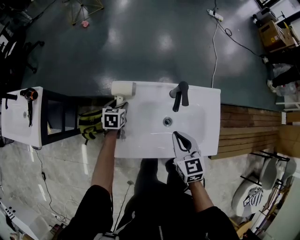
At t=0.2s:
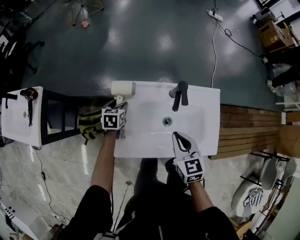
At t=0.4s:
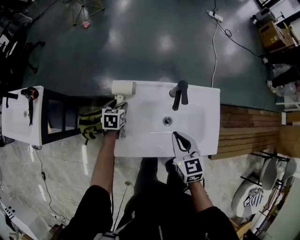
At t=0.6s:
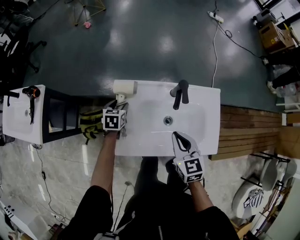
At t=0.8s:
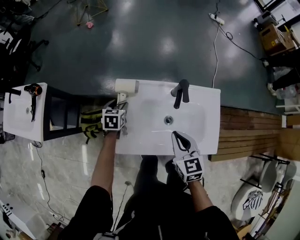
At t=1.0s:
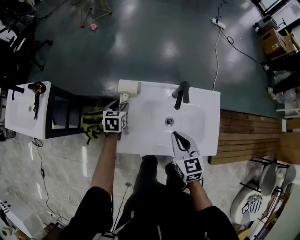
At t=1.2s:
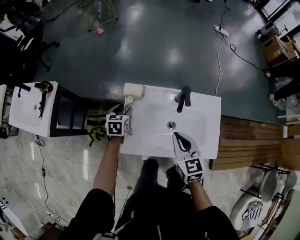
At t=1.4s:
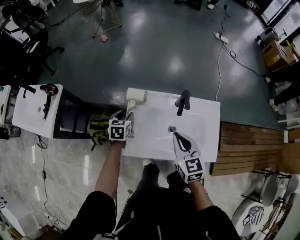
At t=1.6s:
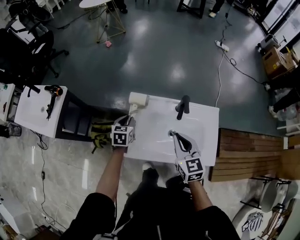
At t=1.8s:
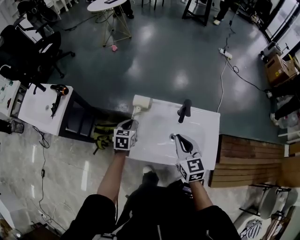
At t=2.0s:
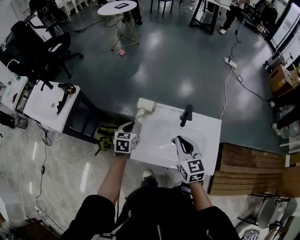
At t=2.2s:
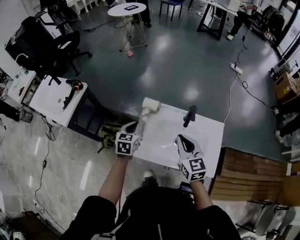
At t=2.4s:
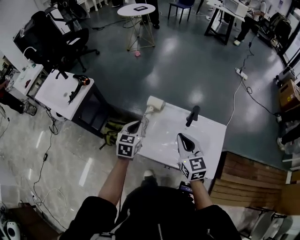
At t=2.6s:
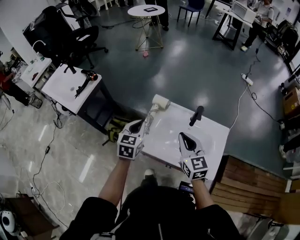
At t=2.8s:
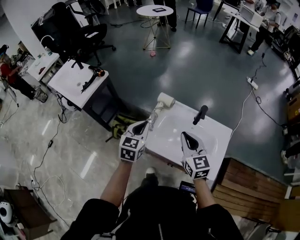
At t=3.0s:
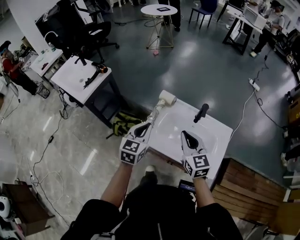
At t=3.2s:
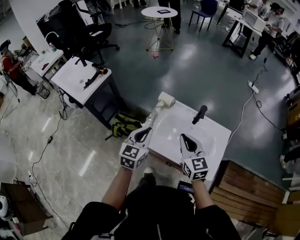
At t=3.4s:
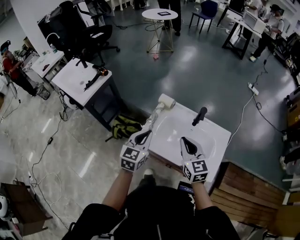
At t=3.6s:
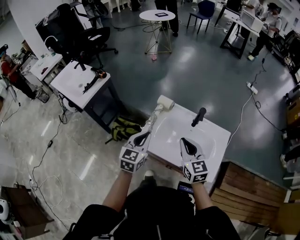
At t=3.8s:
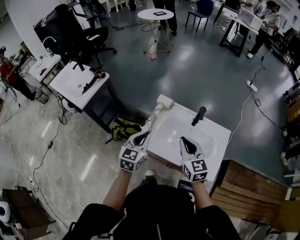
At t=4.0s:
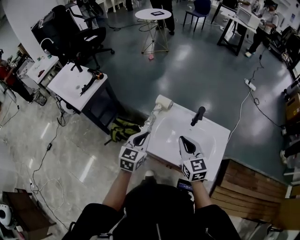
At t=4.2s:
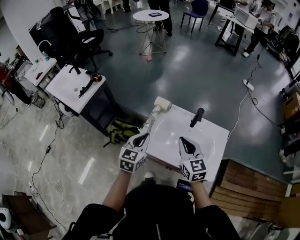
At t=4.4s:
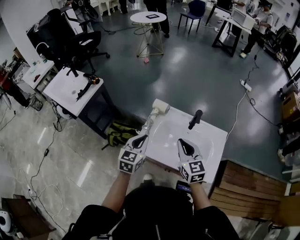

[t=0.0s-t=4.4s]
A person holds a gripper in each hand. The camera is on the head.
t=0.0s to t=1.4s: The left gripper heads upward and backward, covering about 10 cm. The right gripper goes approximately 5 cm upward.
t=1.4s to t=3.0s: The left gripper goes roughly 25 cm upward and backward, swivels roughly 30 degrees, and closes its fingers; the right gripper goes approximately 10 cm upward, and rotates some 20 degrees.
t=3.0s to t=4.4s: The grippers stay close to where they were, moving slightly.

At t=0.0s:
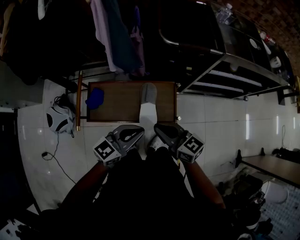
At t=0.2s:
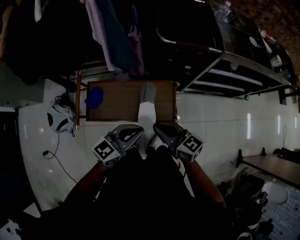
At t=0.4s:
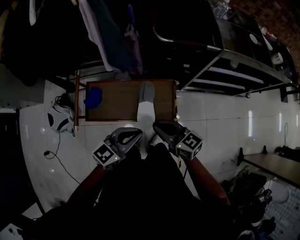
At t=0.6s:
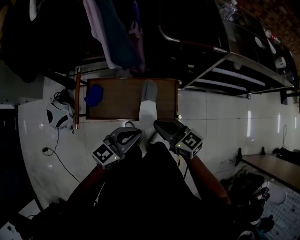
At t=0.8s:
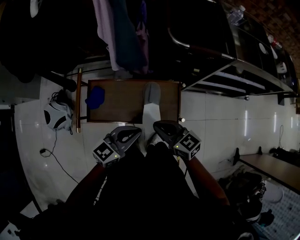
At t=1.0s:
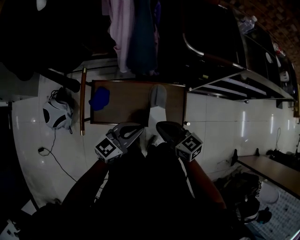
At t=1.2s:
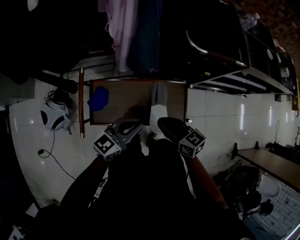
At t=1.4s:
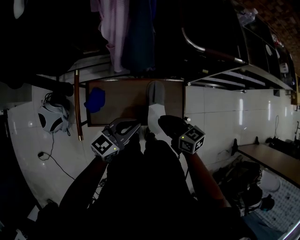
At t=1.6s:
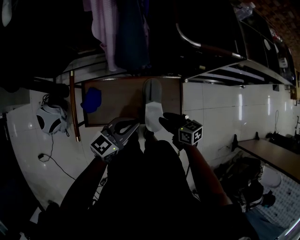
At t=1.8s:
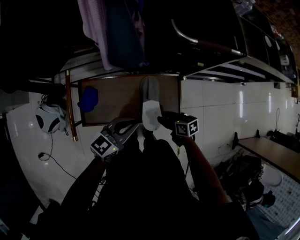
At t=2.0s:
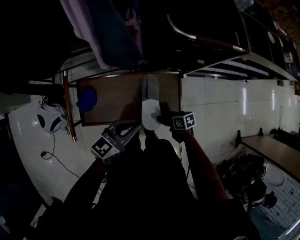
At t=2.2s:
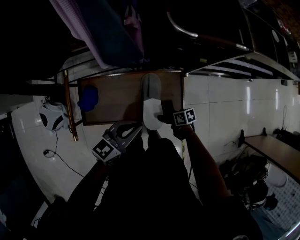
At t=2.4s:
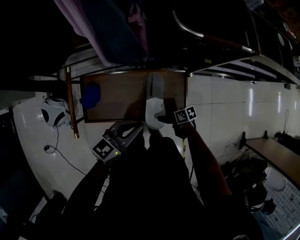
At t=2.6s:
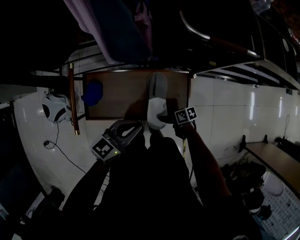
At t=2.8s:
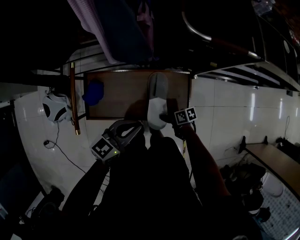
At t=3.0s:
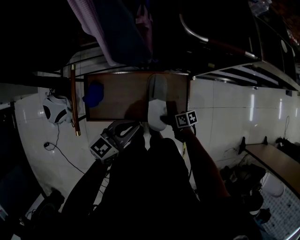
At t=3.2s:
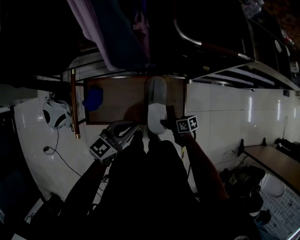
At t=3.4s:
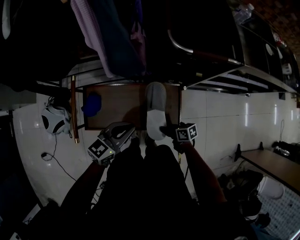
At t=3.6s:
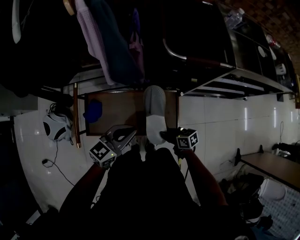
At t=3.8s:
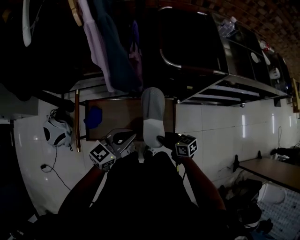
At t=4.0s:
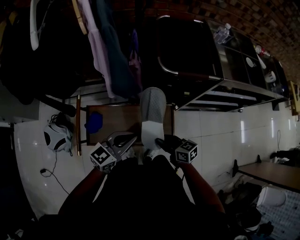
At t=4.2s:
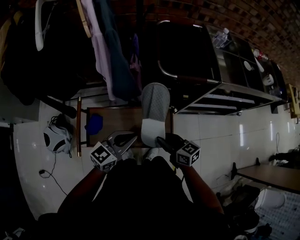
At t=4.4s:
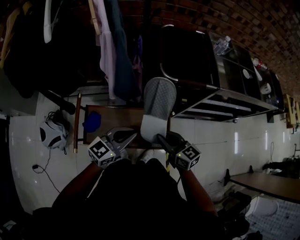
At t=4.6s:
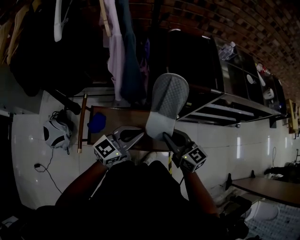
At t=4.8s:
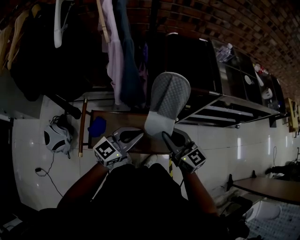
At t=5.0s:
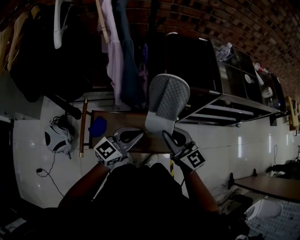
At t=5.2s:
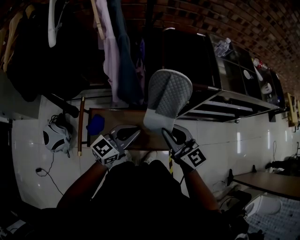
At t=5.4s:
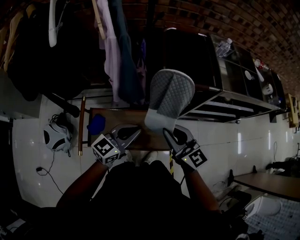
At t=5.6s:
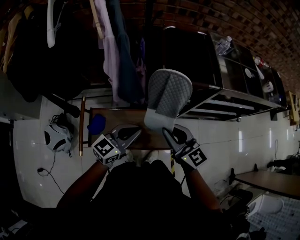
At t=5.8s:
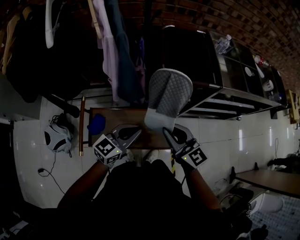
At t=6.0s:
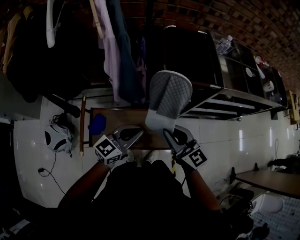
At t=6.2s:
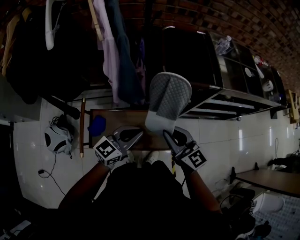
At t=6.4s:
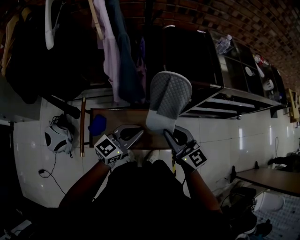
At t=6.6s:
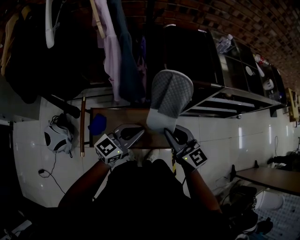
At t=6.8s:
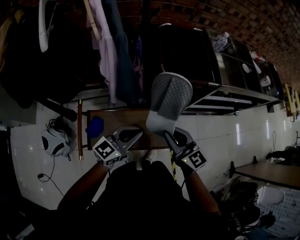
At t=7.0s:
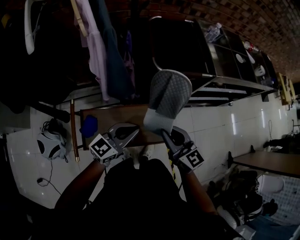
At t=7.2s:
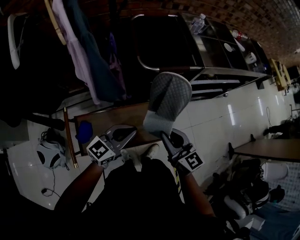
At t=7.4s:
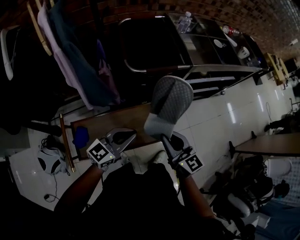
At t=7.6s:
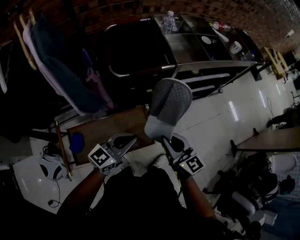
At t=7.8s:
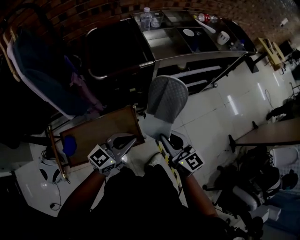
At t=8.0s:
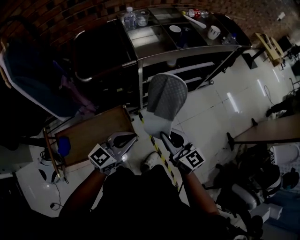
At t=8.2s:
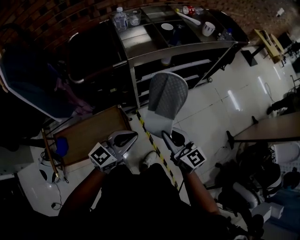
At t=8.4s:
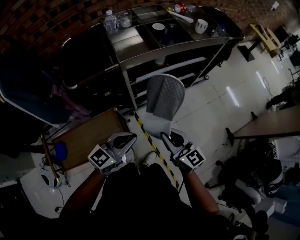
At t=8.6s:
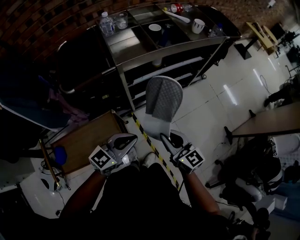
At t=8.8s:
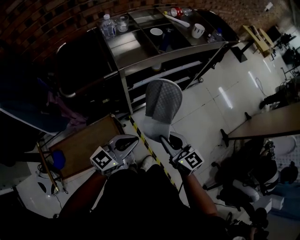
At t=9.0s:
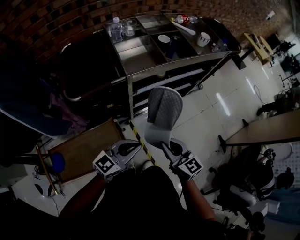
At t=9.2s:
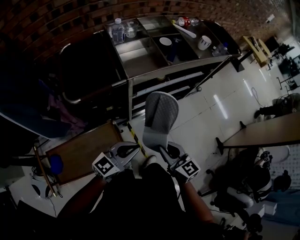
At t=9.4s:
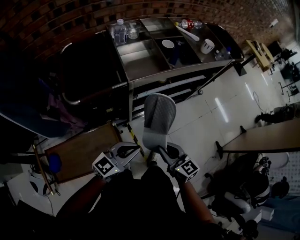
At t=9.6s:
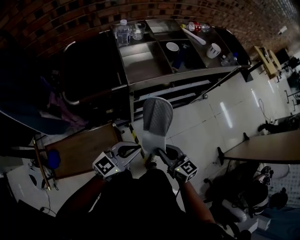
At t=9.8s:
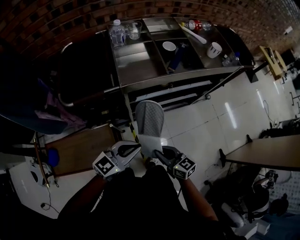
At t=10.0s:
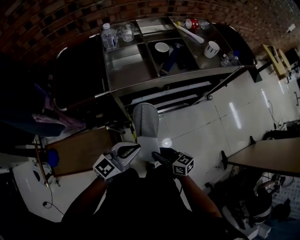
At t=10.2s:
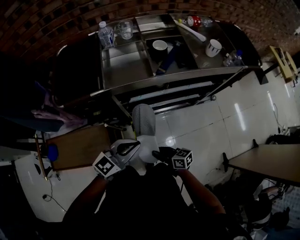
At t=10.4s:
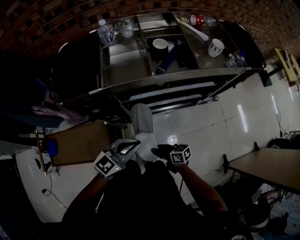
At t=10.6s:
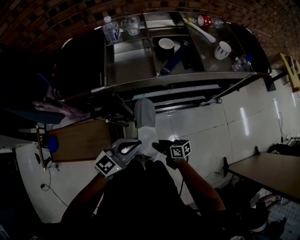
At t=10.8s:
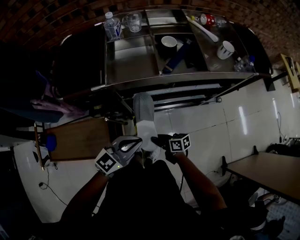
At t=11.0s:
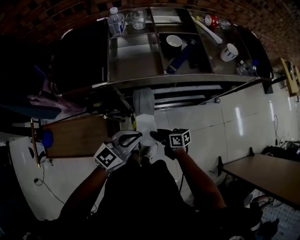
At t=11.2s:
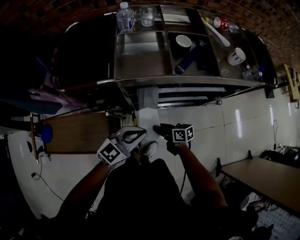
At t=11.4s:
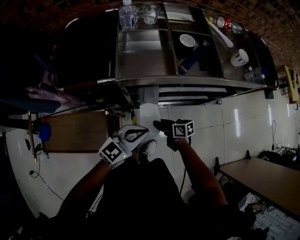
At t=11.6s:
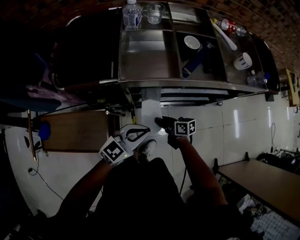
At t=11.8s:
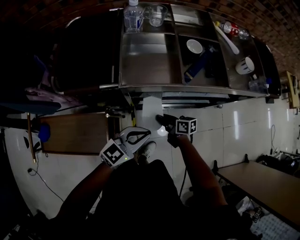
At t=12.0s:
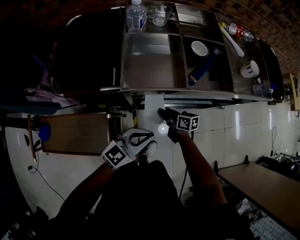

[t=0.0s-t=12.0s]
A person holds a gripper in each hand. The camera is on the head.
t=0.0s to t=1.6s: The right gripper moves downward and forward, approximately 20 cm, turns by about 30 degrees, and opens. Meanwhile the left gripper travels forward, to the left and downward by roughly 15 cm.
t=1.6s to t=3.0s: The right gripper heads downward, covering approximately 15 cm, swivels approximately 30 degrees, and opens, then closes again.
t=3.0s to t=4.4s: The left gripper heads upward, covering about 10 cm. The right gripper is displaced upward by some 35 cm, and turns by roughly 60 degrees.
t=4.4s to t=6.0s: The right gripper shifts about 10 cm upward.
t=6.0s to t=7.6s: The two grippers go approximately 15 cm to the right. The right gripper rotates about 20 degrees.
t=7.6s to t=9.0s: The grippers both shift to the right and forward by about 20 cm.
t=9.0s to t=10.4s: The right gripper travels downward by about 20 cm, and swivels roughly 50 degrees. Meanwhile the left gripper moves approximately 20 cm.
t=10.4s to t=12.0s: The left gripper moves about 10 cm. Meanwhile the right gripper shifts by approximately 25 cm.

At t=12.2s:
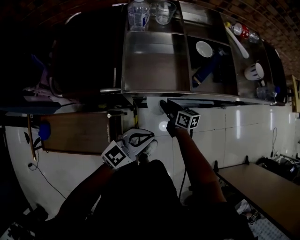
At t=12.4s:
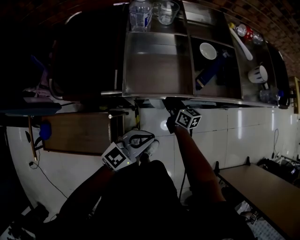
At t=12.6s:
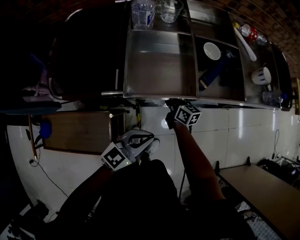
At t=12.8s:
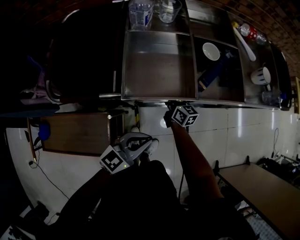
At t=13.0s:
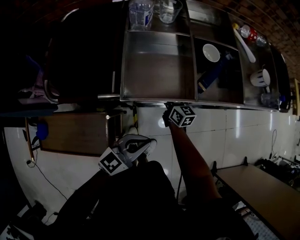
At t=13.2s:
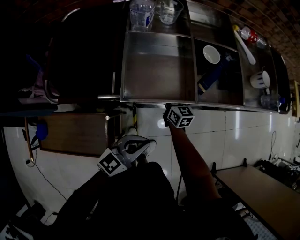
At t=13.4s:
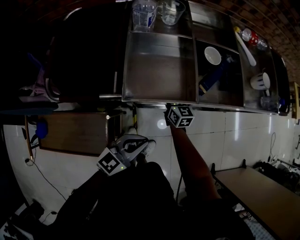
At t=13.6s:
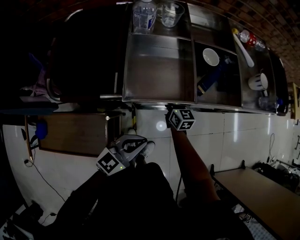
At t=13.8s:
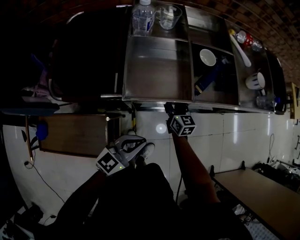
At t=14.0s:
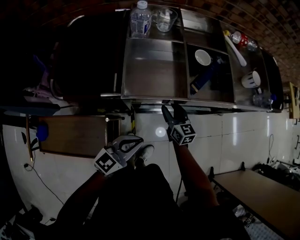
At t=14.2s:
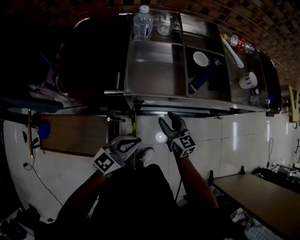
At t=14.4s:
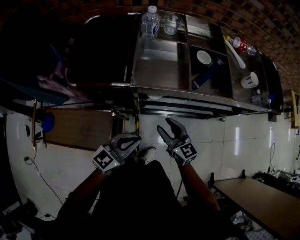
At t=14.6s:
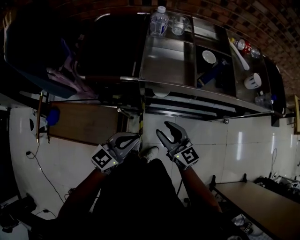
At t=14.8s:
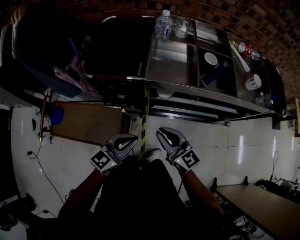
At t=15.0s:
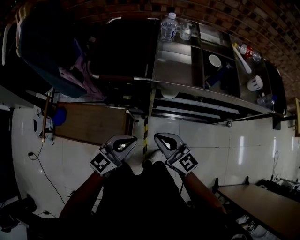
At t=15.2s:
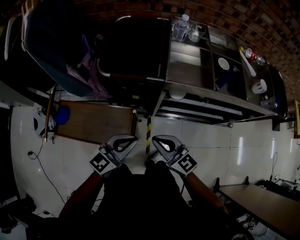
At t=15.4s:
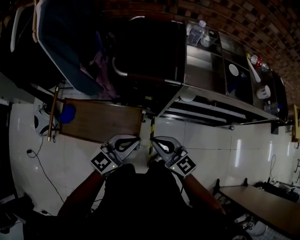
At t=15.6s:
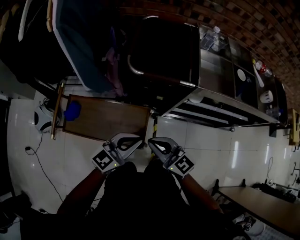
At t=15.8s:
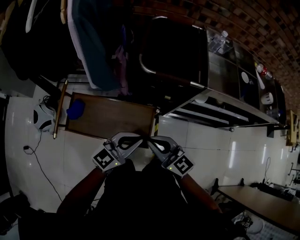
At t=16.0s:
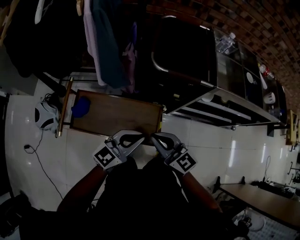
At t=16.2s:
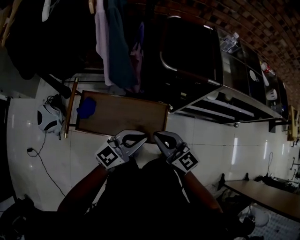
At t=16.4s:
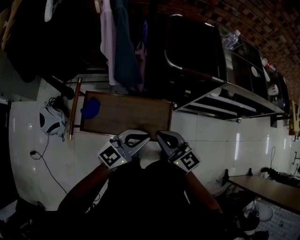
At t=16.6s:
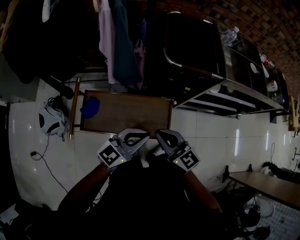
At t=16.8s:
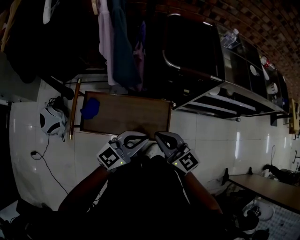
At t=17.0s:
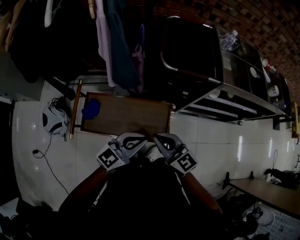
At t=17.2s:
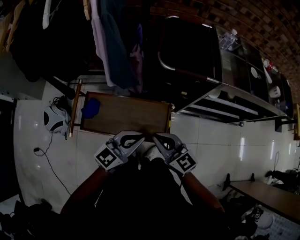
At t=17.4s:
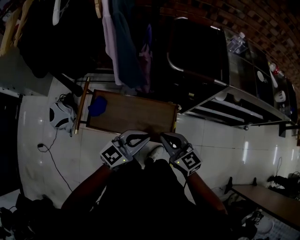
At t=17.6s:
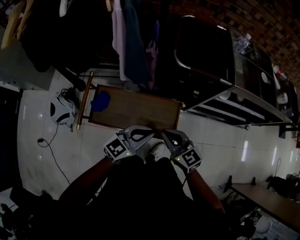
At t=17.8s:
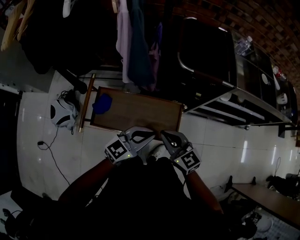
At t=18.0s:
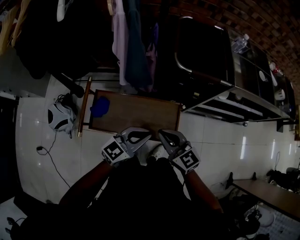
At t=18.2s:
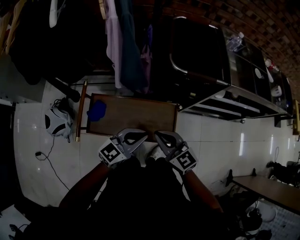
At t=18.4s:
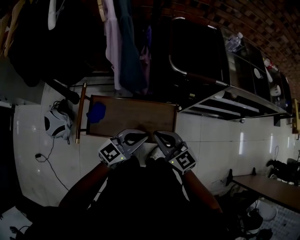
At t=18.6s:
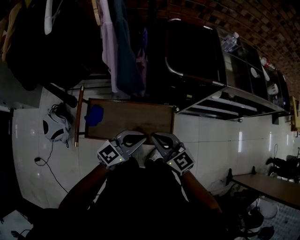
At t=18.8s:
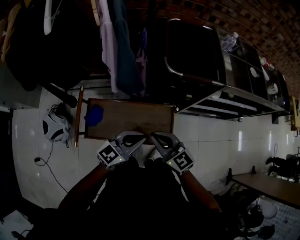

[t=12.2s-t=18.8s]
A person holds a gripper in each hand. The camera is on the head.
t=12.2s to t=13.8s: The right gripper travels forward by roughly 5 cm, rotates about 30 degrees, and opens its fingers.
t=13.8s to t=15.4s: The right gripper is displaced backward, to the left and upward by about 40 cm, swivels about 40 degrees, and closes its fingers. The left gripper heads to the left and backward, covering about 25 cm.
t=15.4s to t=17.2s: The two grippers go some 20 cm to the left.
t=17.2s to t=18.8s: The grippers both shift to the left by approximately 5 cm.
